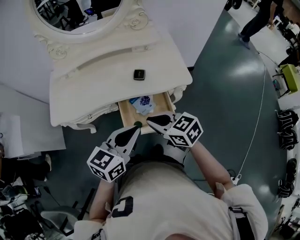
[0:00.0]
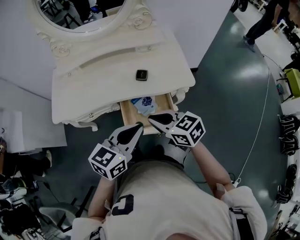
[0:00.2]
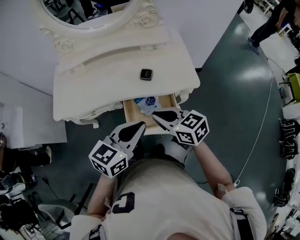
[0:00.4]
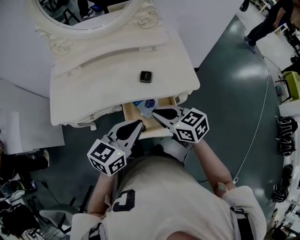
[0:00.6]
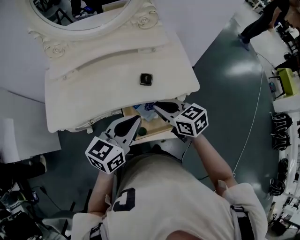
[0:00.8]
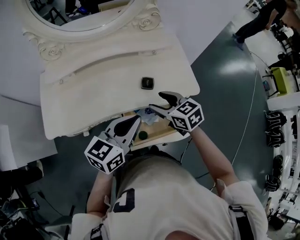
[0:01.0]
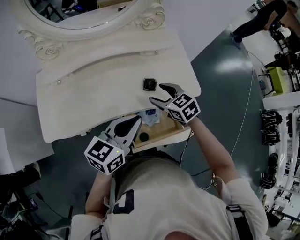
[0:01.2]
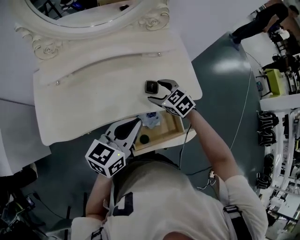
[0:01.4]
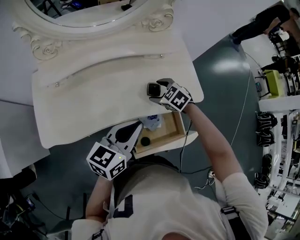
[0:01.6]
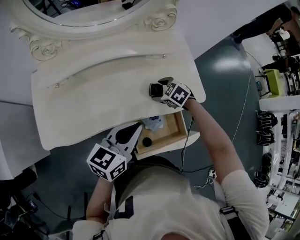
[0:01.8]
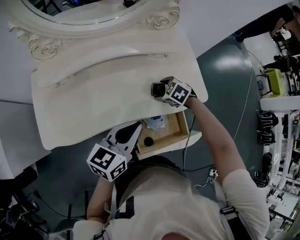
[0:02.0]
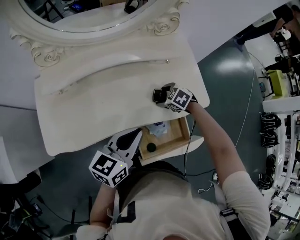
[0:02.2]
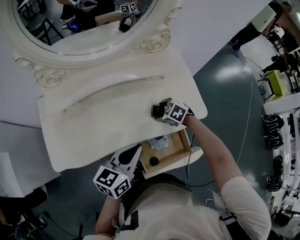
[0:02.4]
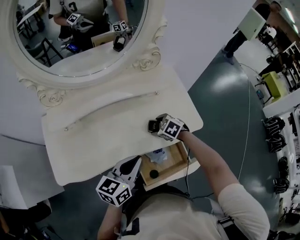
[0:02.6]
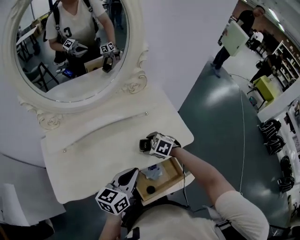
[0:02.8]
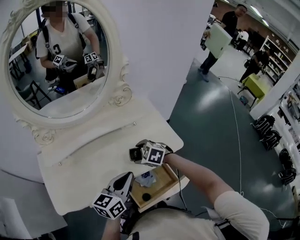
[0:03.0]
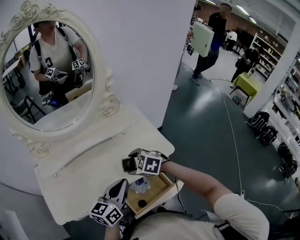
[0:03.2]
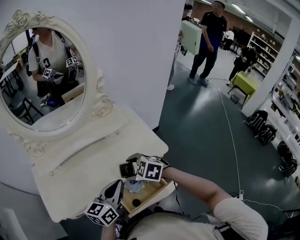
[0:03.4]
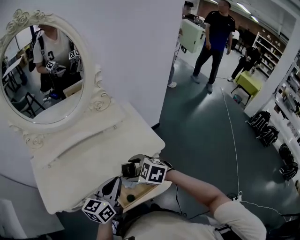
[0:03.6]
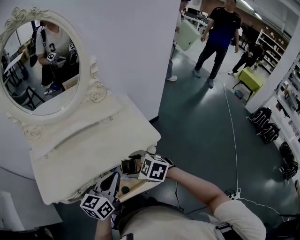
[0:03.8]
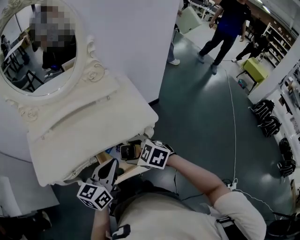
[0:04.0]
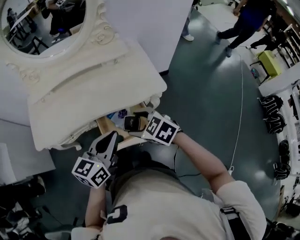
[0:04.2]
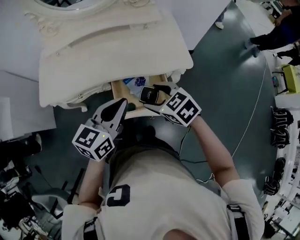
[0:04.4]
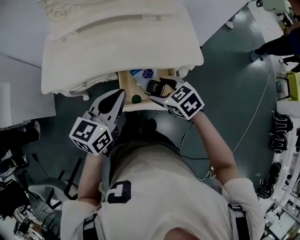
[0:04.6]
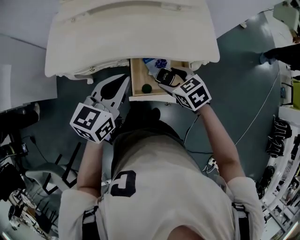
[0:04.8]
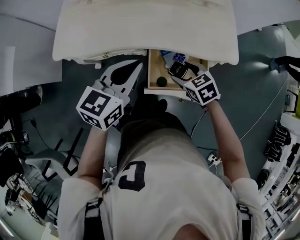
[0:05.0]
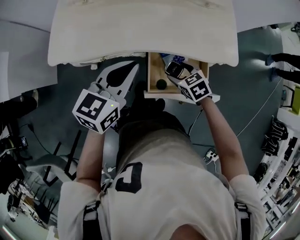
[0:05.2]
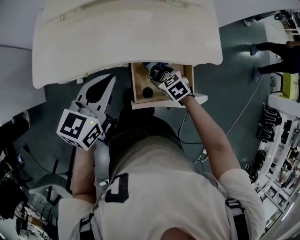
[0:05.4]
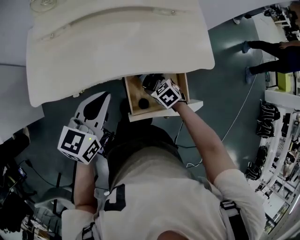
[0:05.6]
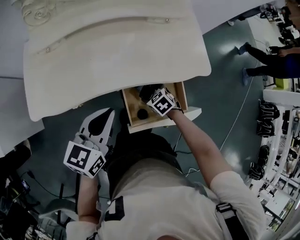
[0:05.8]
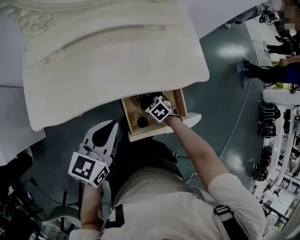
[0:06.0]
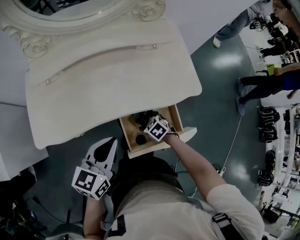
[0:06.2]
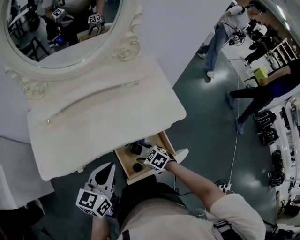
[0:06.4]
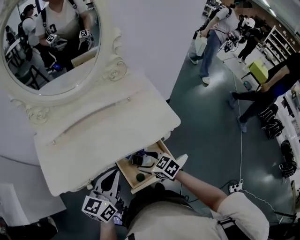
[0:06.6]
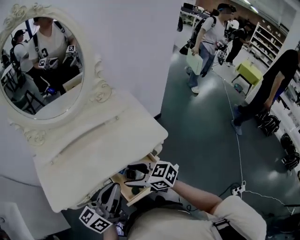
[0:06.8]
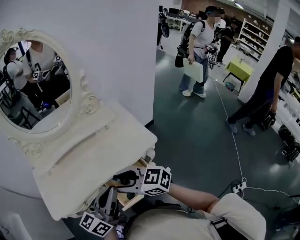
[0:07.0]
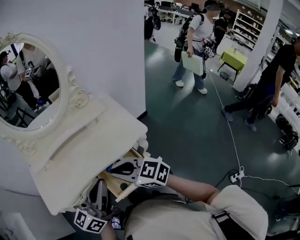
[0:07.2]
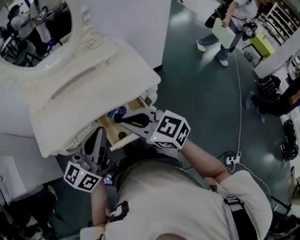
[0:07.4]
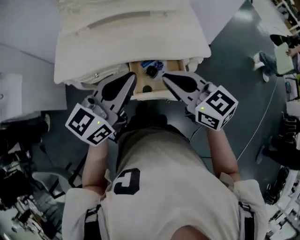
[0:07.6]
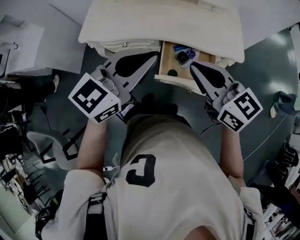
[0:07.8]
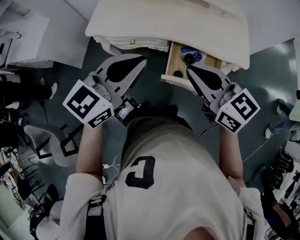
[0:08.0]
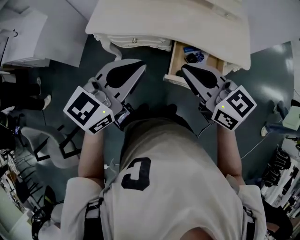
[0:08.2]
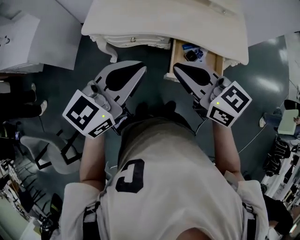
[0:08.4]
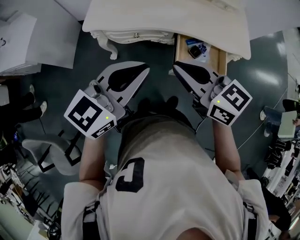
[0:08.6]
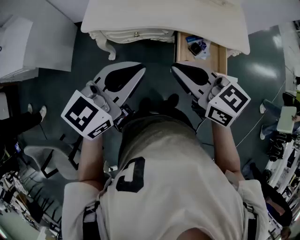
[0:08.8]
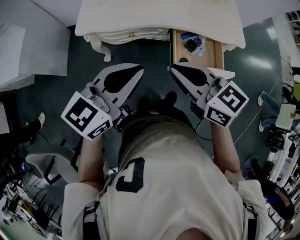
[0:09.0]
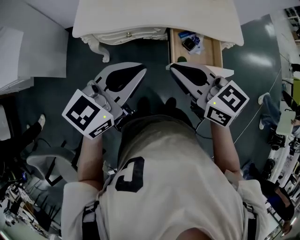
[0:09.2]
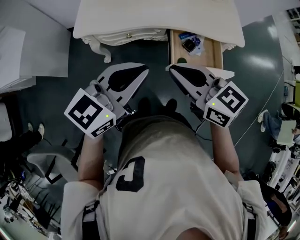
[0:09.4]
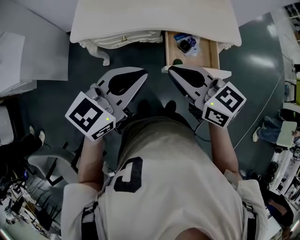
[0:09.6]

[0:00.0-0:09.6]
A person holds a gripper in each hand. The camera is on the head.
0:00.0 to 0:01.6: The left gripper travels forward and to the left by approximately 20 cm. The right gripper moves forward and downward, some 30 cm, points its fingers roughly 30 degrees further downward, and opens its fingers.
0:01.6 to 0:03.2: The left gripper goes about 5 cm to the right; the right gripper moves upward and backward, roughly 15 cm.
0:03.2 to 0:04.8: The right gripper shifts some 15 cm backward and downward. Meanwhile the left gripper travels backward and to the left by roughly 10 cm, and turns by roughly 20 degrees.
0:04.8 to 0:06.4: The right gripper moves downward and to the left, about 15 cm.
0:06.4 to 0:08.0: The right gripper shifts roughly 35 cm upward and backward, tilts its fingers roughly 50 degrees upward, and closes its fingers. The left gripper goes about 20 cm backward and upward, and rotates about 20 degrees.
0:08.0 to 0:09.6: The right gripper is displaced to the left by roughly 10 cm, while the left gripper travels to the left by approximately 5 cm.

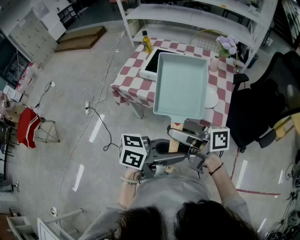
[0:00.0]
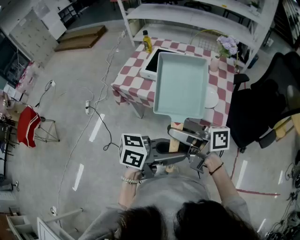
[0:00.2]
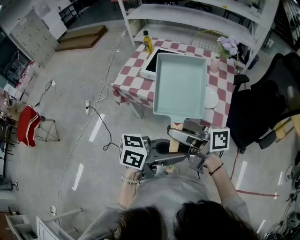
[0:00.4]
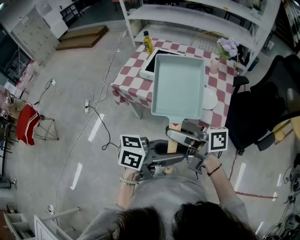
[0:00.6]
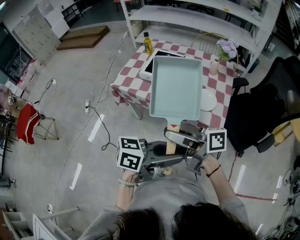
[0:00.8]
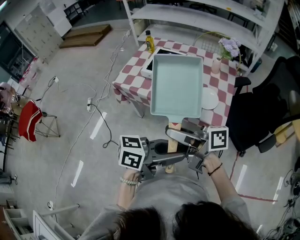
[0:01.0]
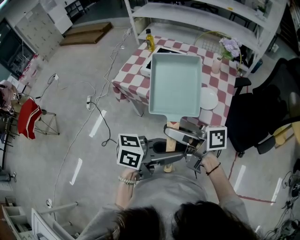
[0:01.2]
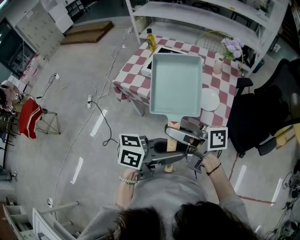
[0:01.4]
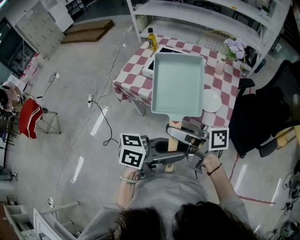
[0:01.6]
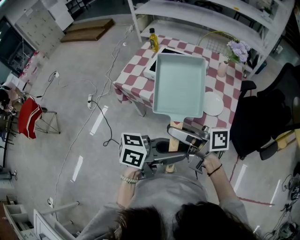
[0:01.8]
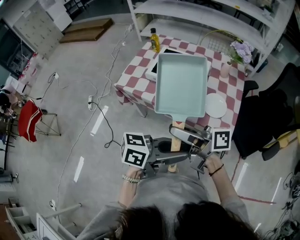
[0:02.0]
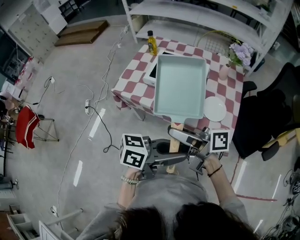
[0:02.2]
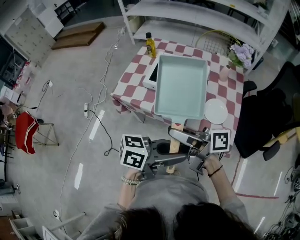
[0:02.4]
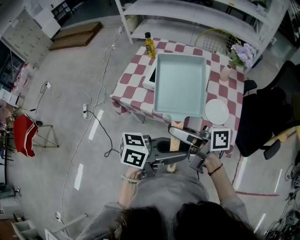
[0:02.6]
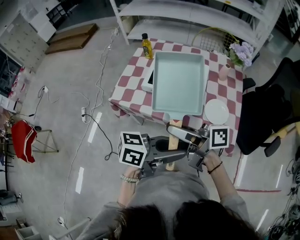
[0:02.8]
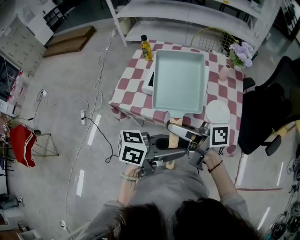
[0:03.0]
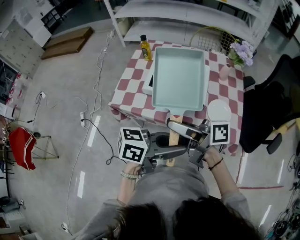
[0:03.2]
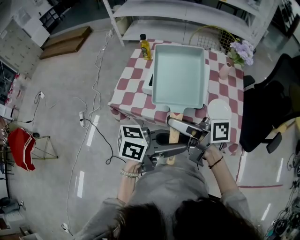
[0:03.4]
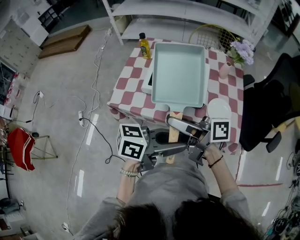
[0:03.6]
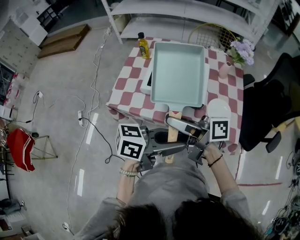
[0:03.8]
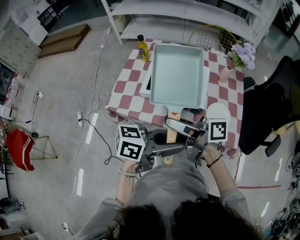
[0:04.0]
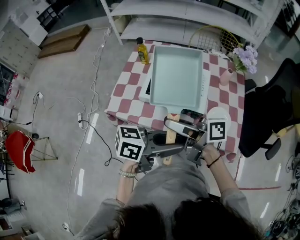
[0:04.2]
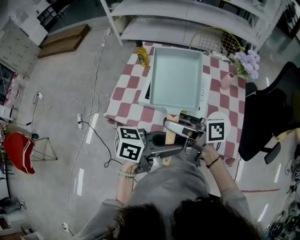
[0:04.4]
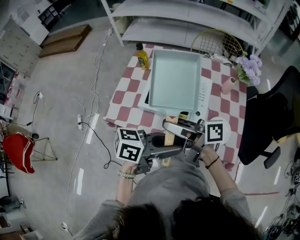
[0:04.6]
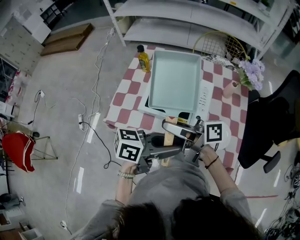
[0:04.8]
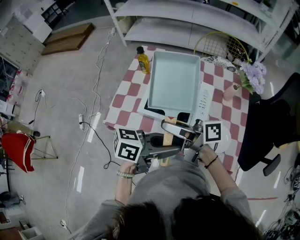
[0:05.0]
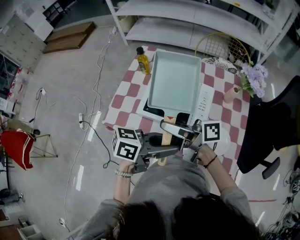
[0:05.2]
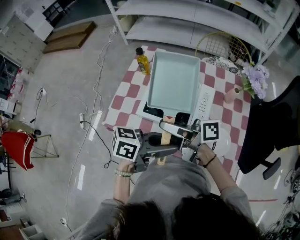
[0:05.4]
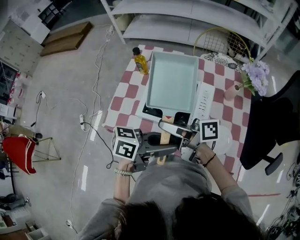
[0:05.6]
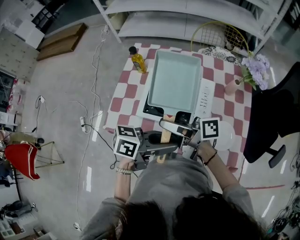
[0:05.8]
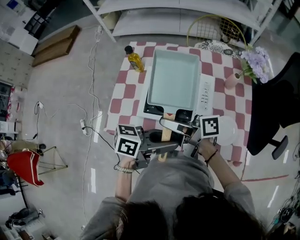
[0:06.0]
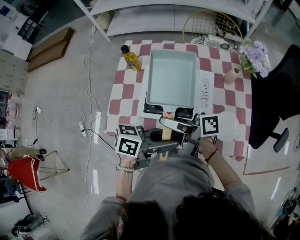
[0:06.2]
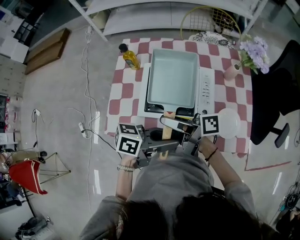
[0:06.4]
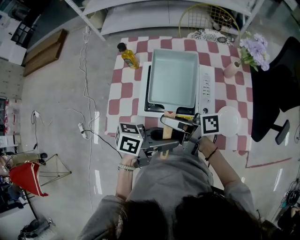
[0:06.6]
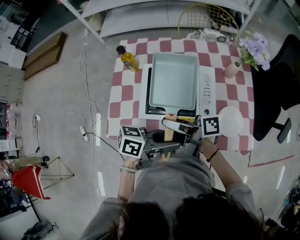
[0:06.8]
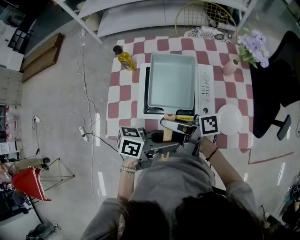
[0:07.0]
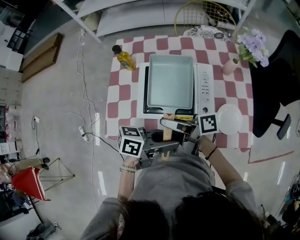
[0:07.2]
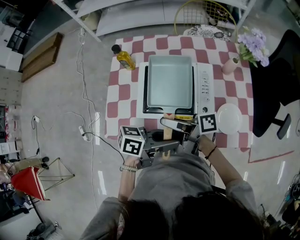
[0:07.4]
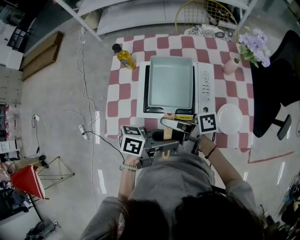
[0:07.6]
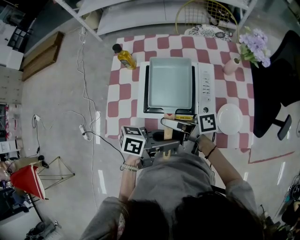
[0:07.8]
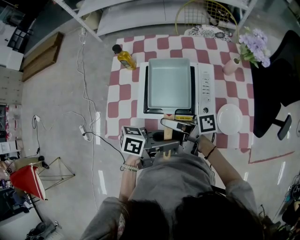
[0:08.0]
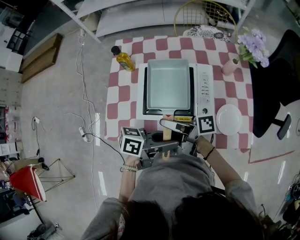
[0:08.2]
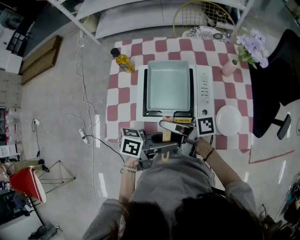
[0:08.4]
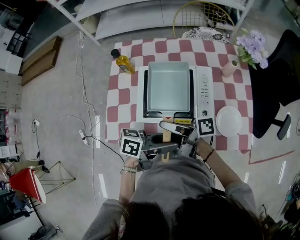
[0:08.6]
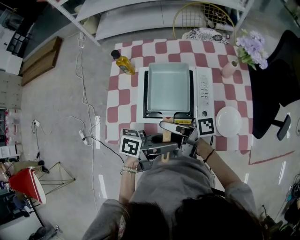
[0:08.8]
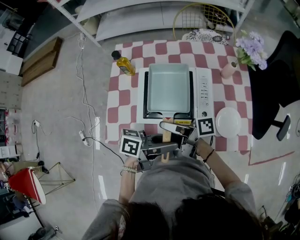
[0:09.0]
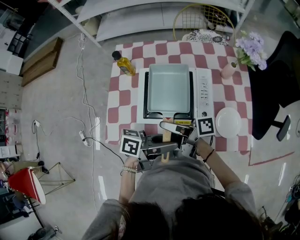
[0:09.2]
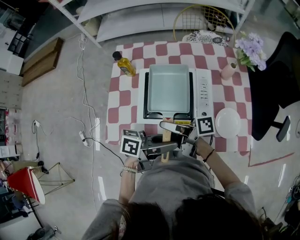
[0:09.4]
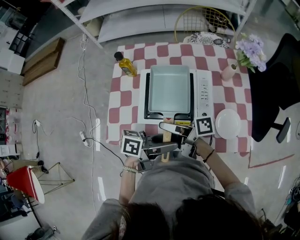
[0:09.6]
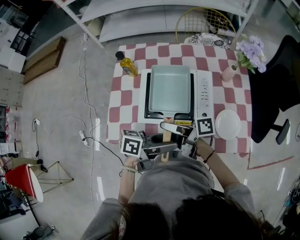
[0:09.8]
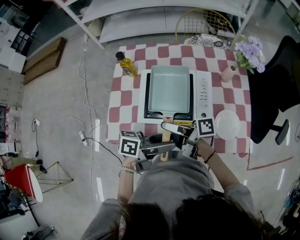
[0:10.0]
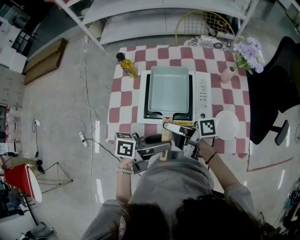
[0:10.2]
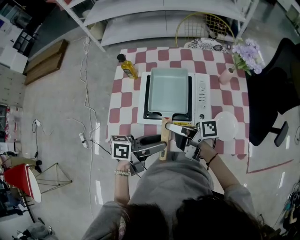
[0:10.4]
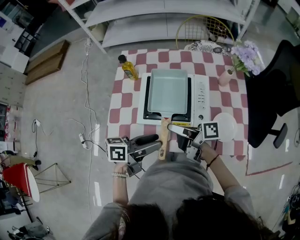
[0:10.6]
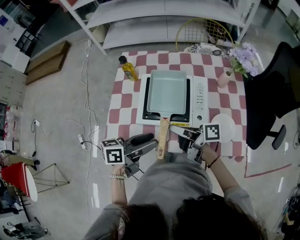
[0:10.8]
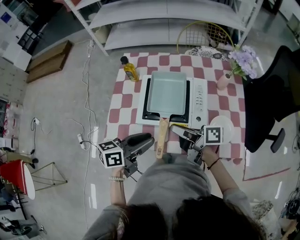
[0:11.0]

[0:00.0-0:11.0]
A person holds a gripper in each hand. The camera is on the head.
0:00.0 to 0:01.6: The grippers stay close to where they were, moving slightly.
0:01.6 to 0:03.2: The left gripper ends up approximately 20 cm from where it was. The right gripper shifts by some 20 cm.
0:03.2 to 0:04.8: The left gripper moves some 15 cm, while the right gripper moves about 15 cm.
0:04.8 to 0:06.2: The left gripper moves about 5 cm. Meanwhile the right gripper moves some 10 cm.
0:06.2 to 0:07.8: Both grippers travel together downward, roughly 5 cm.
0:07.8 to 0:09.4: The grippers move only a little.
0:09.4 to 0:11.0: The left gripper ends up approximately 10 cm from where it was, swivels some 30 degrees, and opens and closes again. The right gripper shifts by roughly 5 cm.

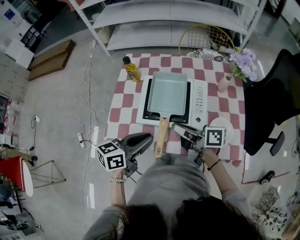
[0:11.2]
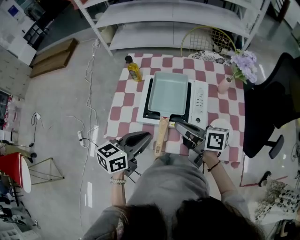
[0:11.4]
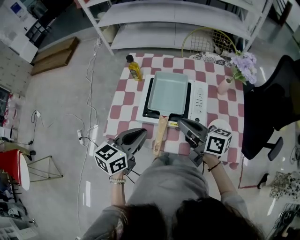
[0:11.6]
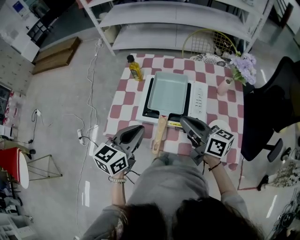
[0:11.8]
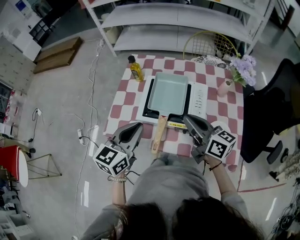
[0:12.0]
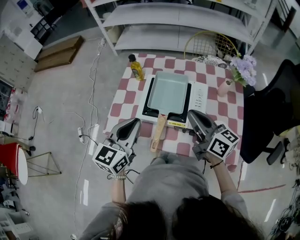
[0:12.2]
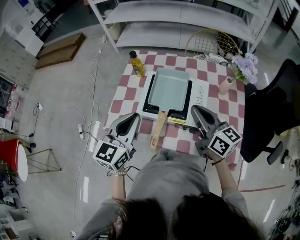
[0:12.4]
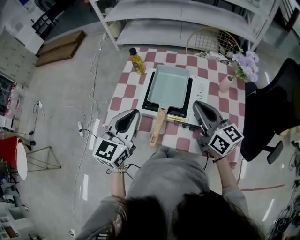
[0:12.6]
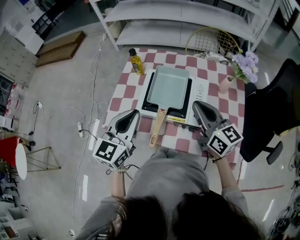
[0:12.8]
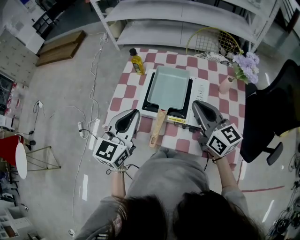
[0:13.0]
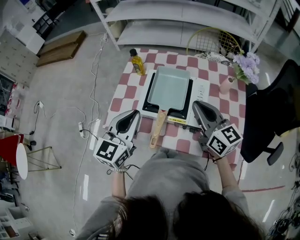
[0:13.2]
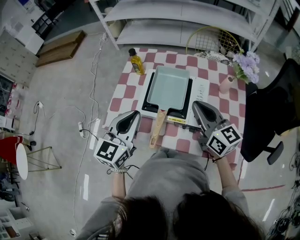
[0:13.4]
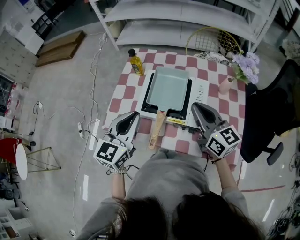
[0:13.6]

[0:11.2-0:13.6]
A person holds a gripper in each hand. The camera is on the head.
0:11.2 to 0:12.4: The right gripper travels to the right and upward by about 10 cm, and rolls counterclockwise, seen from behind, by approximately 40 degrees. The left gripper moves upward, some 5 cm, and turns by approximately 40 degrees.
0:12.4 to 0:13.6: There are only small adjustments of the grippers.
